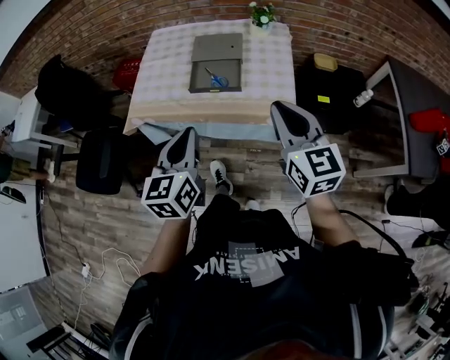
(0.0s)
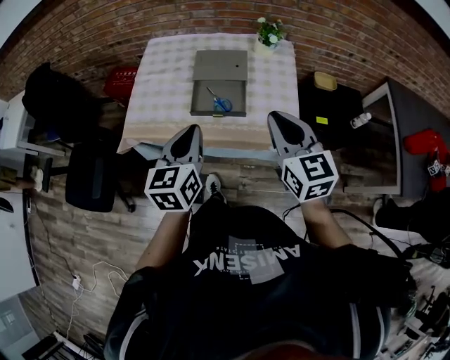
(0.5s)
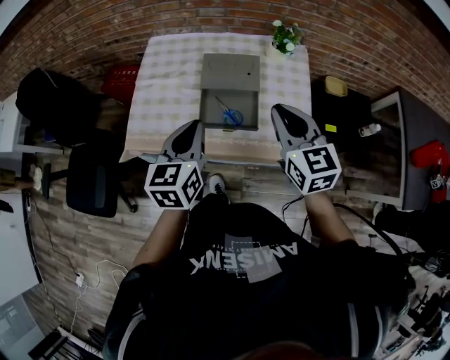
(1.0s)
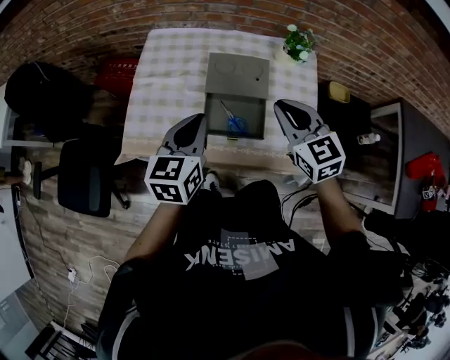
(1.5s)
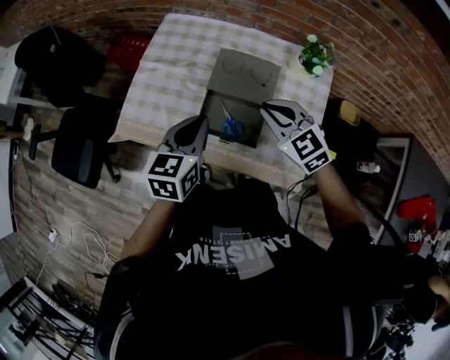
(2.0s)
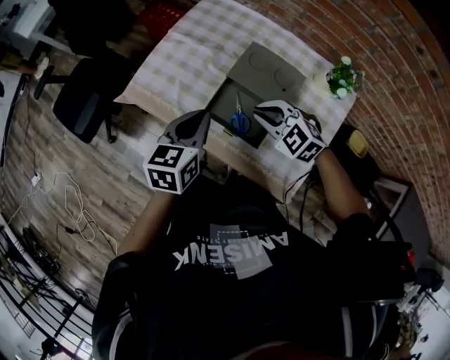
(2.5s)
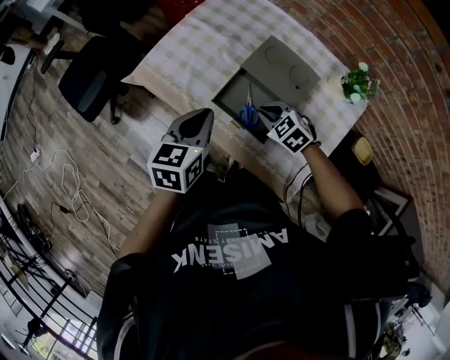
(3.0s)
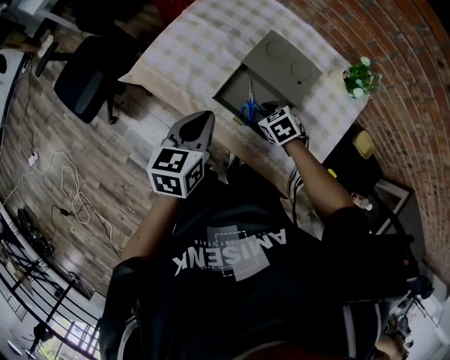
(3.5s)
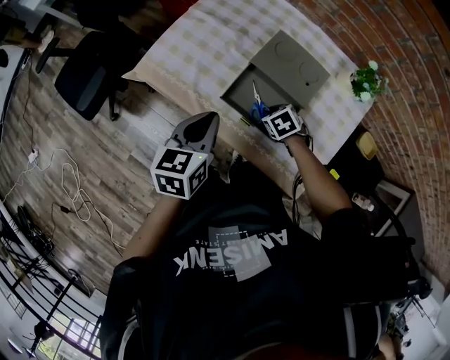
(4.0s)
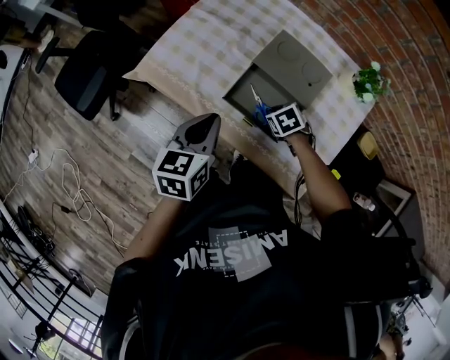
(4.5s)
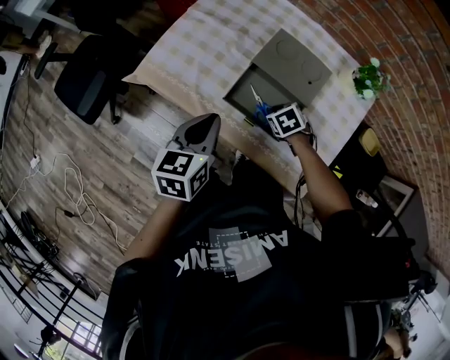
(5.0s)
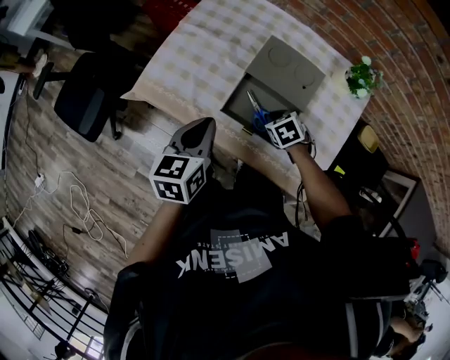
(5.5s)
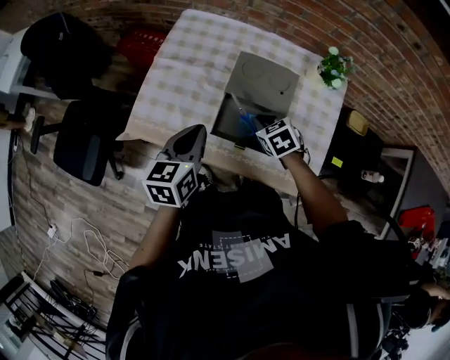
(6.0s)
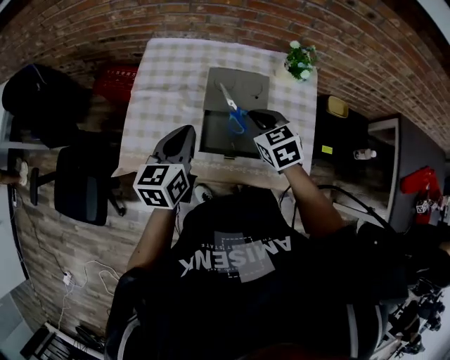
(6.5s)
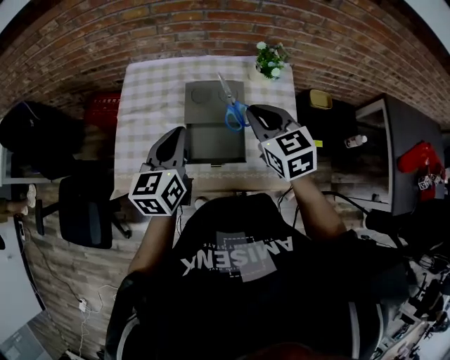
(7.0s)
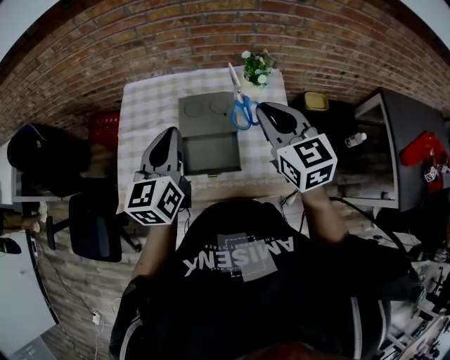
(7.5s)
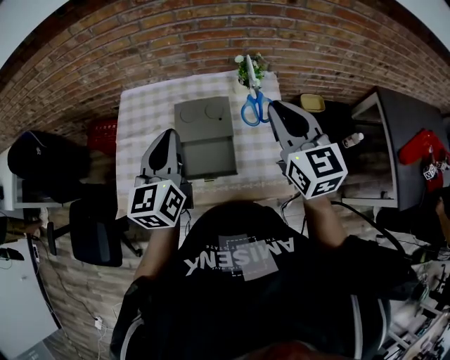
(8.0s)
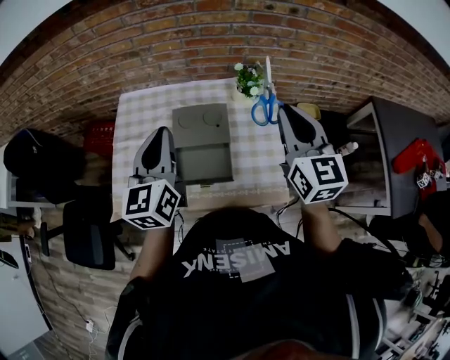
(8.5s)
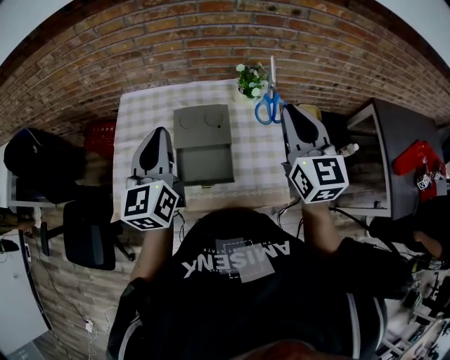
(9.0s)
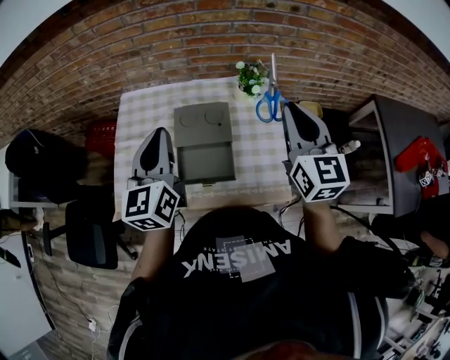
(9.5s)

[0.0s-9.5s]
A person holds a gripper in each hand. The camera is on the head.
0.0s to 2.0s: Both grippers travel together forward, approximately 35 cm. The right gripper rotates roughly 50 degrees.
2.0s to 4.0s: The left gripper moves to the left and downward, approximately 10 cm, while the right gripper goes roughly 25 cm downward, and angles its fingers downward, by some 40 degrees.
4.0s to 5.5s: The grippers stay close to where they were, moving slightly.
5.5s to 7.5s: The right gripper shifts some 40 cm upward, and angles its fingers upward, by roughly 50 degrees. The left gripper goes some 20 cm upward, to the right and forward, and swivels approximately 30 degrees.
7.5s to 9.5s: The right gripper moves to the right and upward, approximately 10 cm.

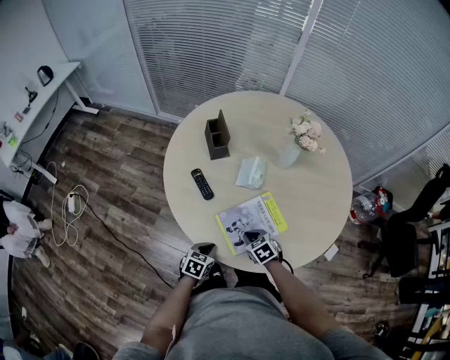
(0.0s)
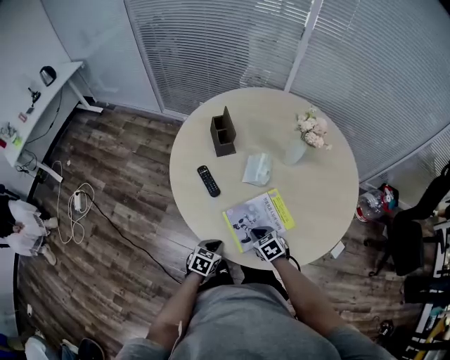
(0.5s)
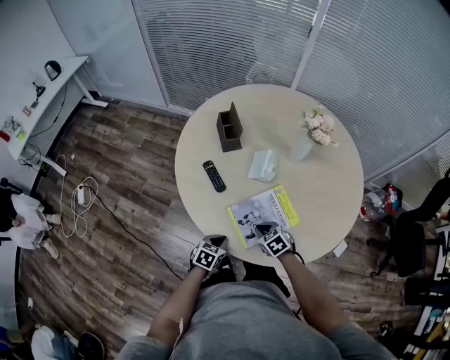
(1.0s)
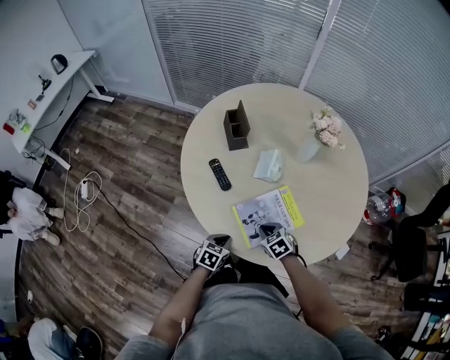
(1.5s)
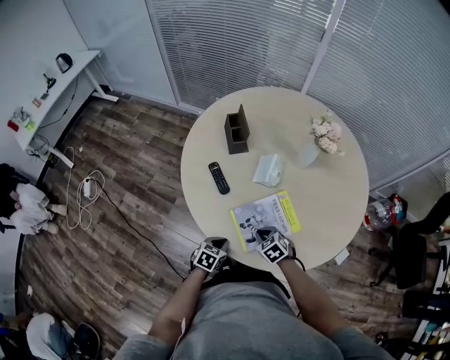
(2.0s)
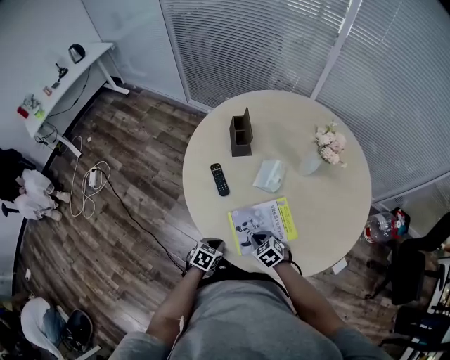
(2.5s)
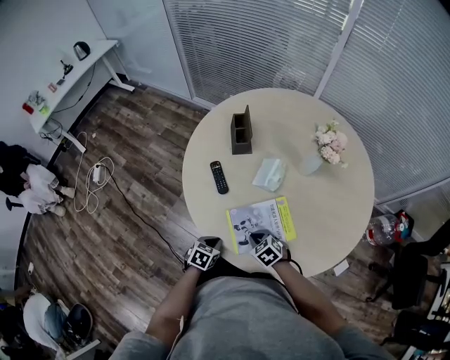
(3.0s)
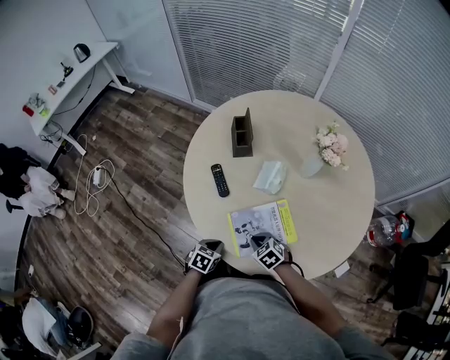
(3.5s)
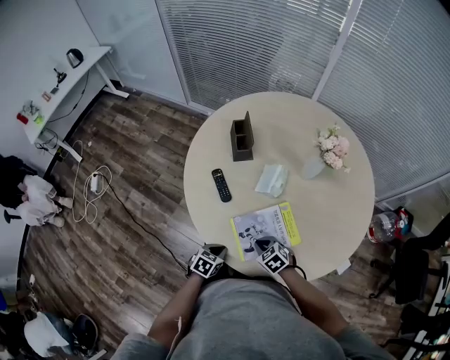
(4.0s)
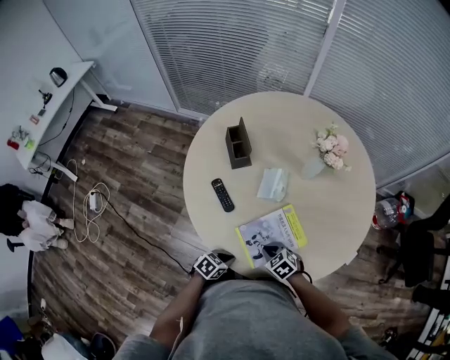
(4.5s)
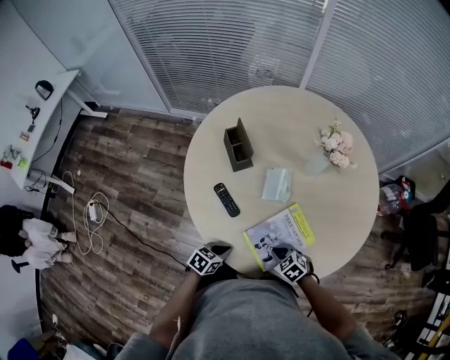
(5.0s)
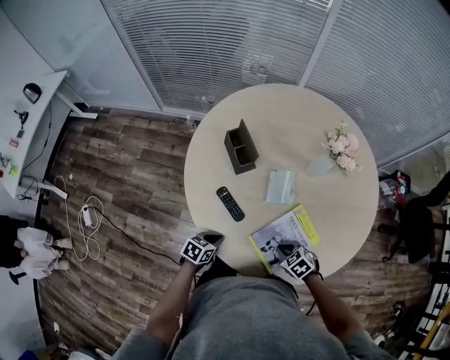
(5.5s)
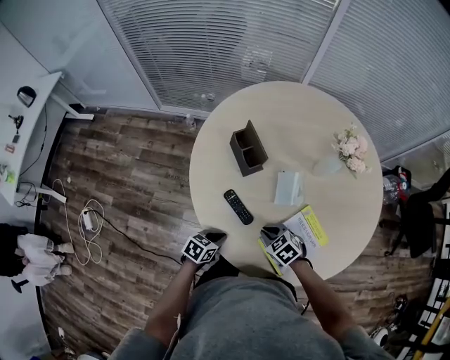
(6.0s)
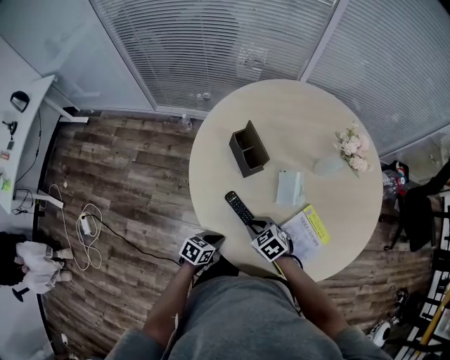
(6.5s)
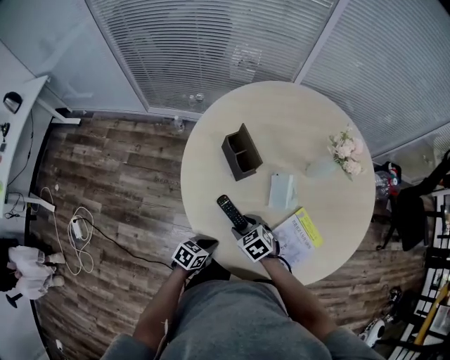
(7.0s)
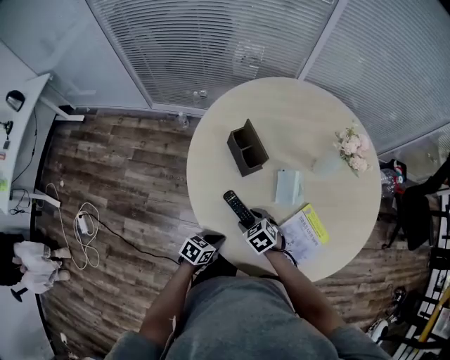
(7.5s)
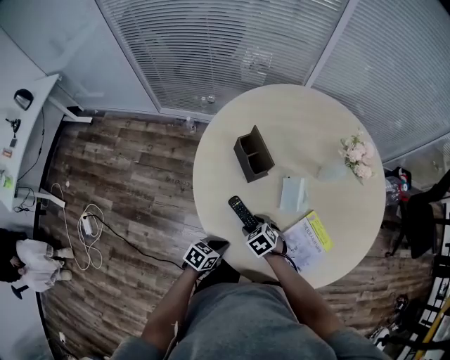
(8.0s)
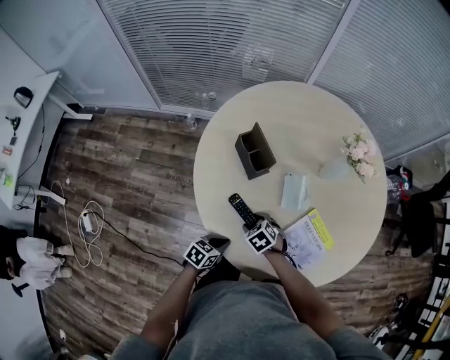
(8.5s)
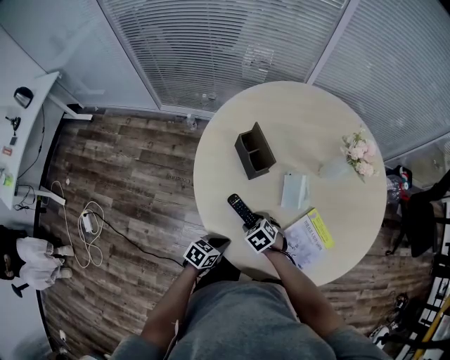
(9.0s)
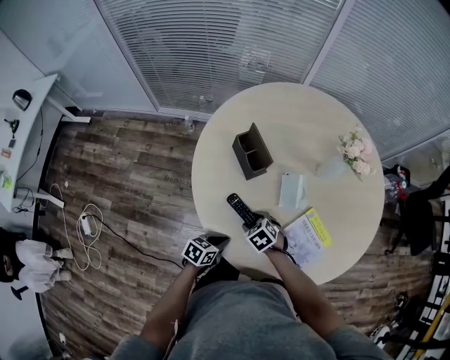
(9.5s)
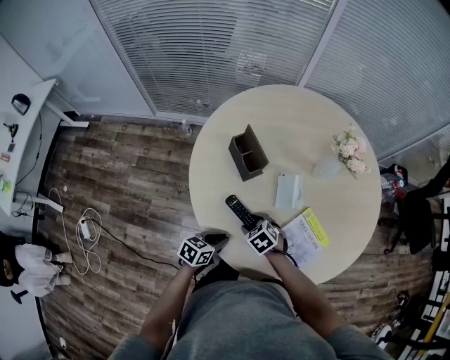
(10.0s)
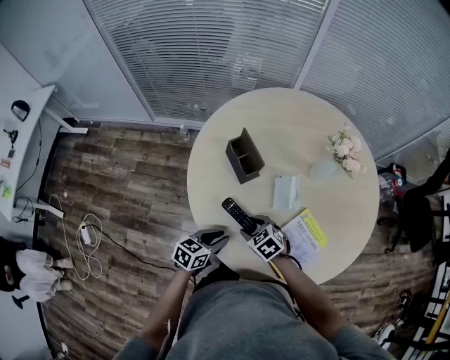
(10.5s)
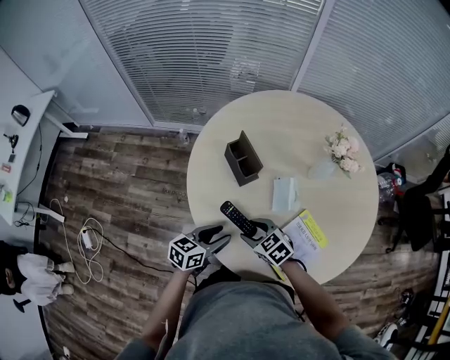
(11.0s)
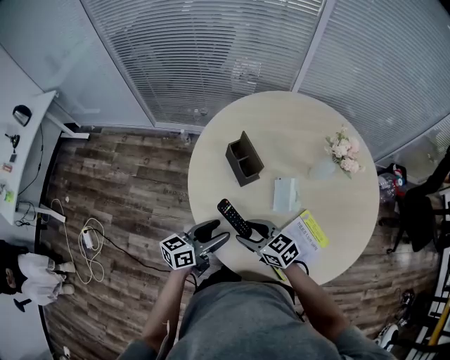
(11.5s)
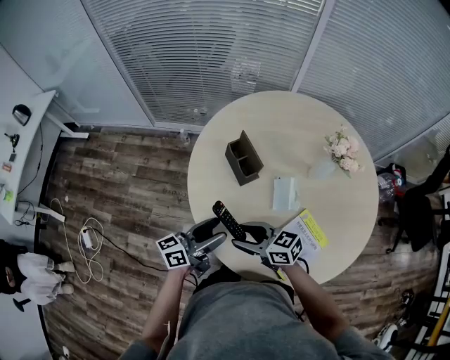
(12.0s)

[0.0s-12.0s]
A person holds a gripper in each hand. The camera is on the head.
0.0s to 2.0s: There are only small adjustments of the grippers.
2.0s to 4.0s: The grippers stay close to where they were, moving slightly.
4.0s to 6.0s: The left gripper shifts by approximately 20 cm, and swivels roughly 20 degrees. Meanwhile the right gripper changes place by roughly 15 cm.
6.0s to 8.0s: The right gripper travels to the left by about 10 cm, and opens up.
8.0s to 10.0s: The grippers move only a little.
10.0s to 12.0s: The grippers both shift upward by about 15 cm. The left gripper tilts its fingers some 40 degrees upward, and opens its fingers. Meanwhile the right gripper points its fingers some 50 degrees further upward.

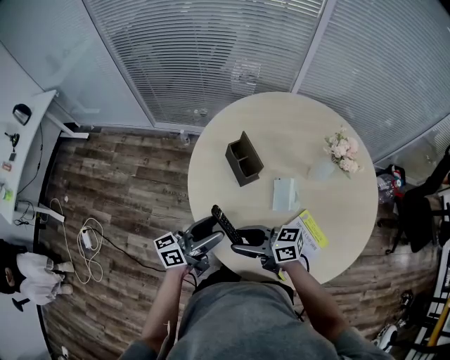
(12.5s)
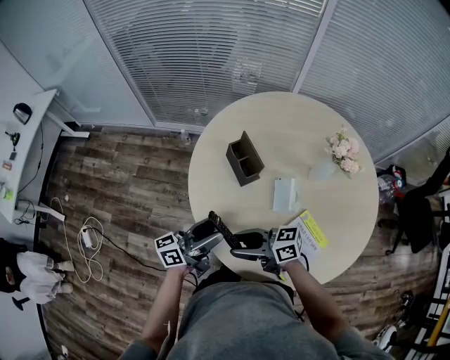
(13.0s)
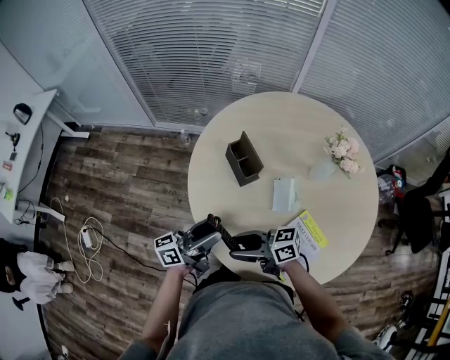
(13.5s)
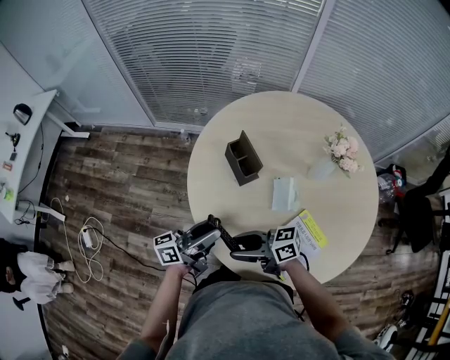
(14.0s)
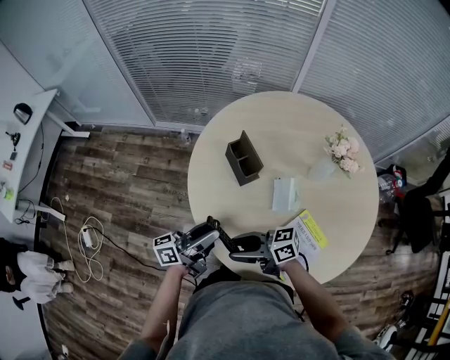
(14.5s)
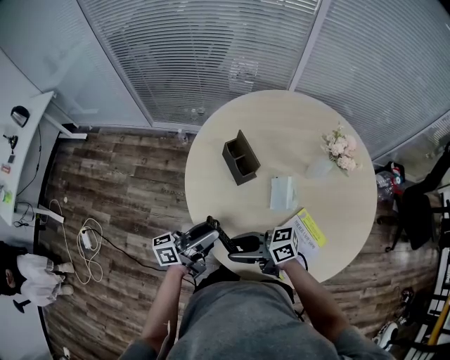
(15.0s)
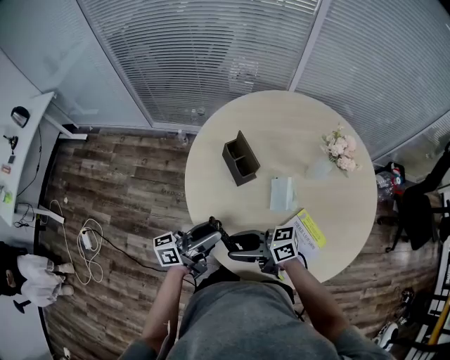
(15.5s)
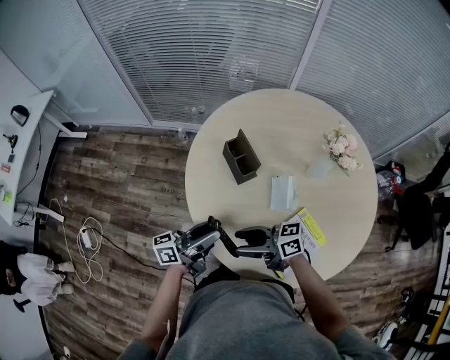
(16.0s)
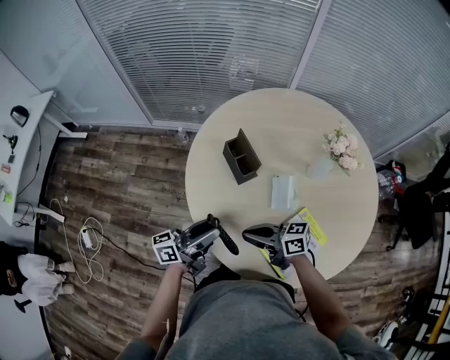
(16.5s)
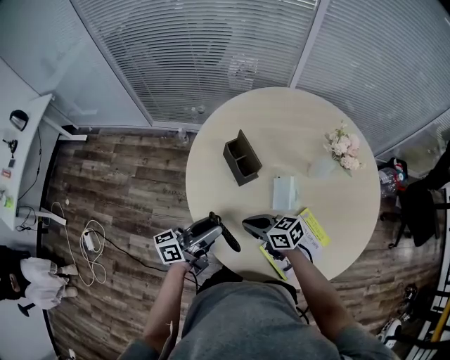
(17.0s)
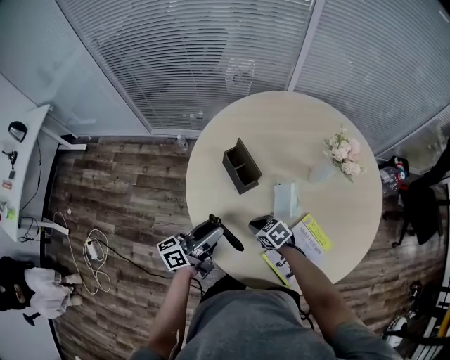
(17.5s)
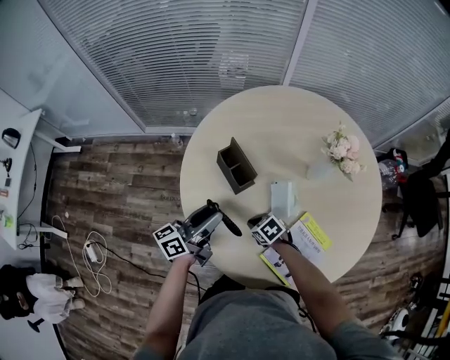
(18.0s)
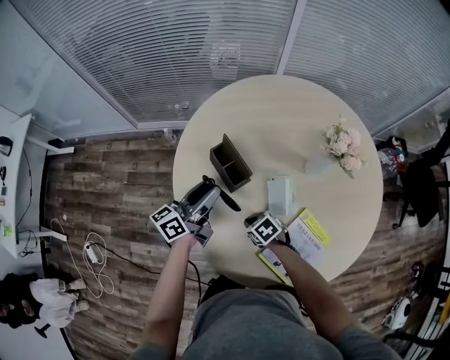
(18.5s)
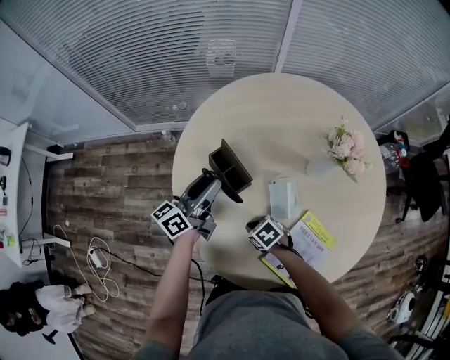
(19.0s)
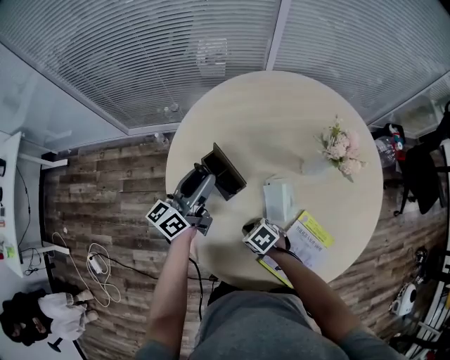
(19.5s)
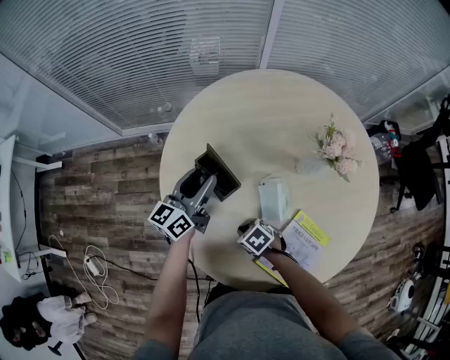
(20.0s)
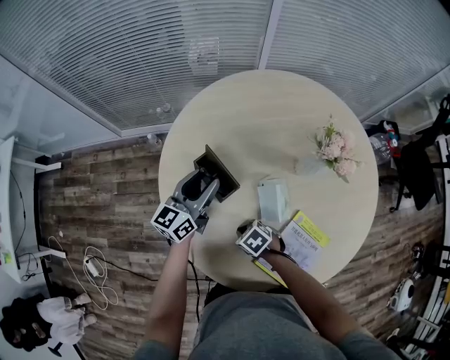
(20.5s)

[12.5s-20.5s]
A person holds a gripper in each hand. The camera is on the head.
12.5s to 14.5s: The left gripper closes.
14.5s to 16.5s: The right gripper changes place by about 5 cm, and closes up.
16.5s to 18.5s: The left gripper ends up about 20 cm from where it was; the right gripper travels downward by approximately 20 cm, and angles its fingers downward, by some 50 degrees.
18.5s to 20.5s: The left gripper shifts roughly 5 cm to the right, and changes its angle by about 30 degrees.
